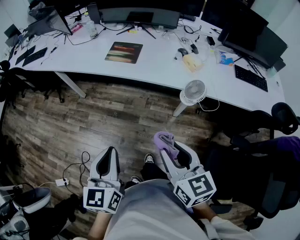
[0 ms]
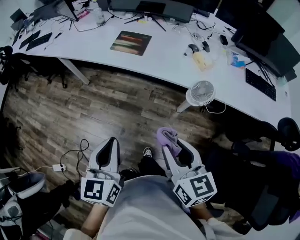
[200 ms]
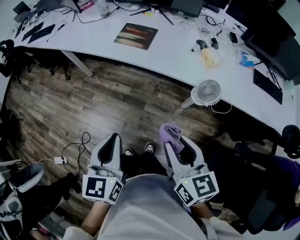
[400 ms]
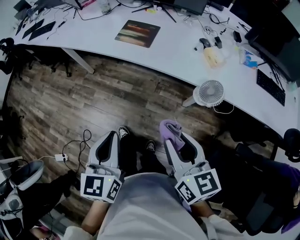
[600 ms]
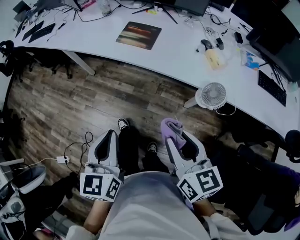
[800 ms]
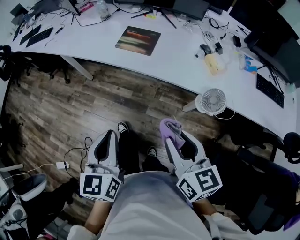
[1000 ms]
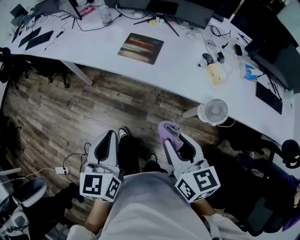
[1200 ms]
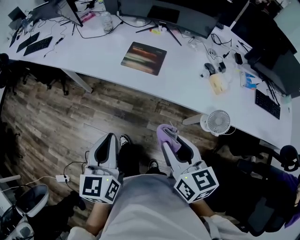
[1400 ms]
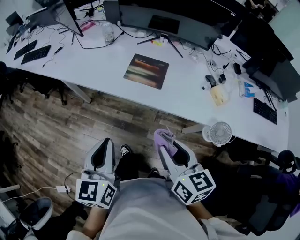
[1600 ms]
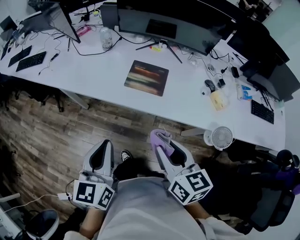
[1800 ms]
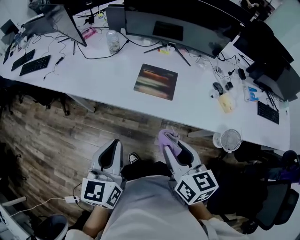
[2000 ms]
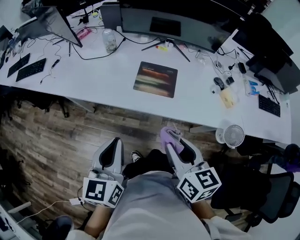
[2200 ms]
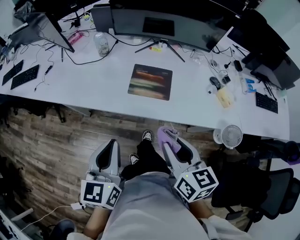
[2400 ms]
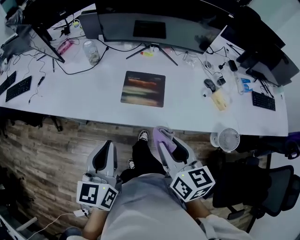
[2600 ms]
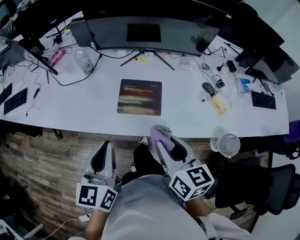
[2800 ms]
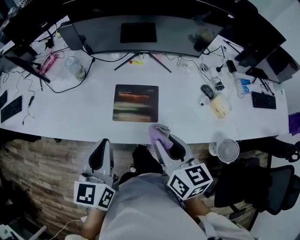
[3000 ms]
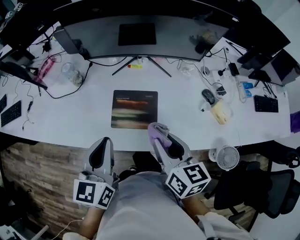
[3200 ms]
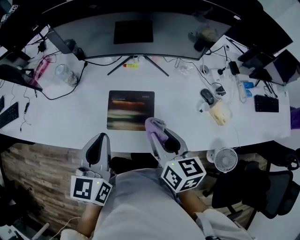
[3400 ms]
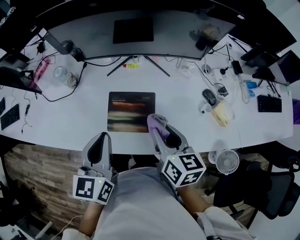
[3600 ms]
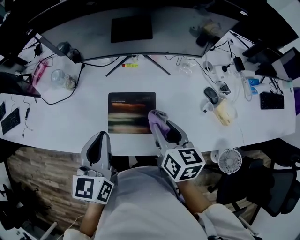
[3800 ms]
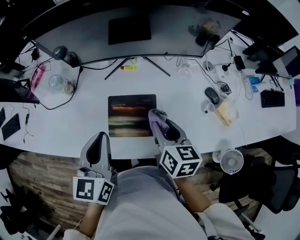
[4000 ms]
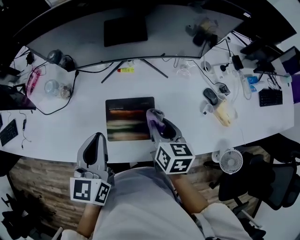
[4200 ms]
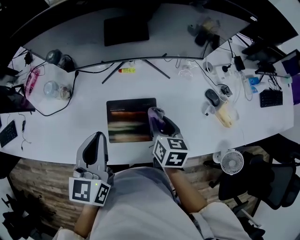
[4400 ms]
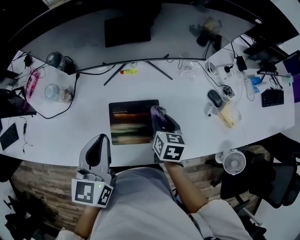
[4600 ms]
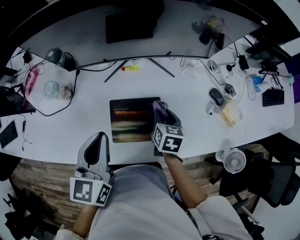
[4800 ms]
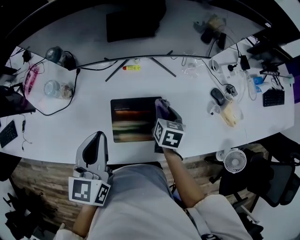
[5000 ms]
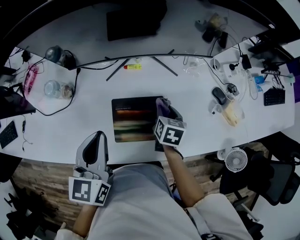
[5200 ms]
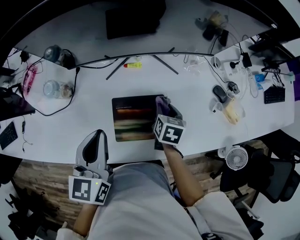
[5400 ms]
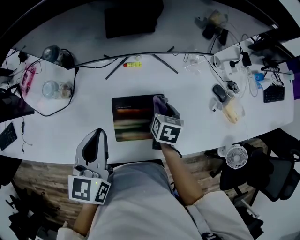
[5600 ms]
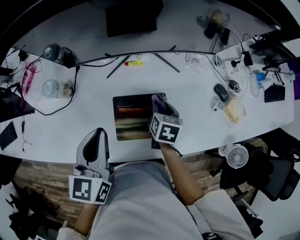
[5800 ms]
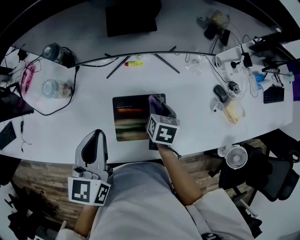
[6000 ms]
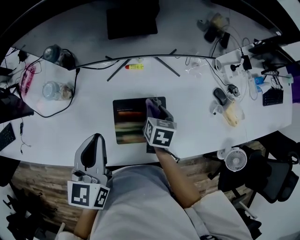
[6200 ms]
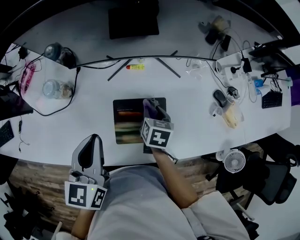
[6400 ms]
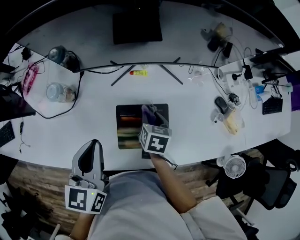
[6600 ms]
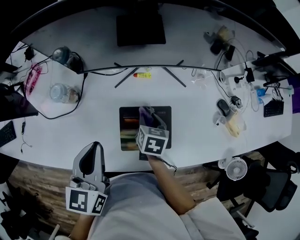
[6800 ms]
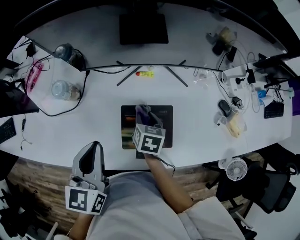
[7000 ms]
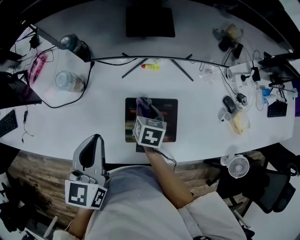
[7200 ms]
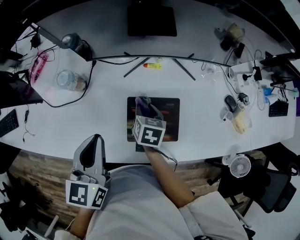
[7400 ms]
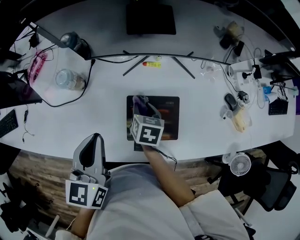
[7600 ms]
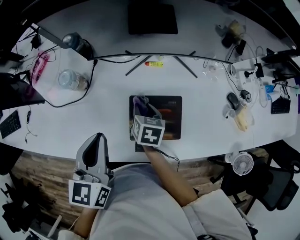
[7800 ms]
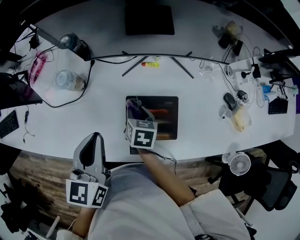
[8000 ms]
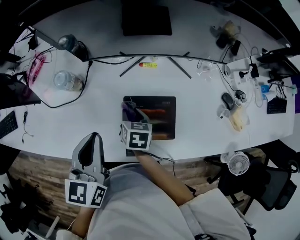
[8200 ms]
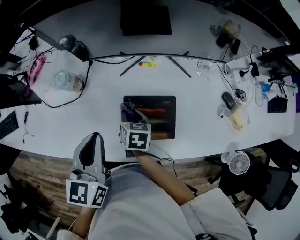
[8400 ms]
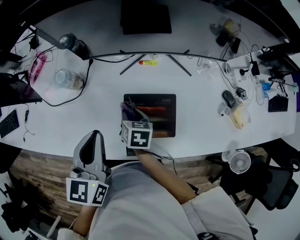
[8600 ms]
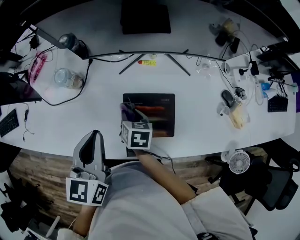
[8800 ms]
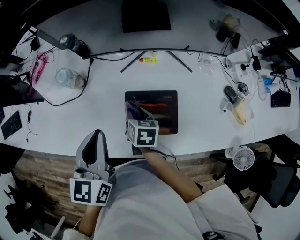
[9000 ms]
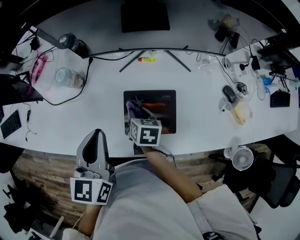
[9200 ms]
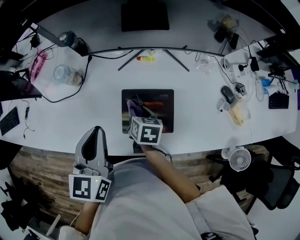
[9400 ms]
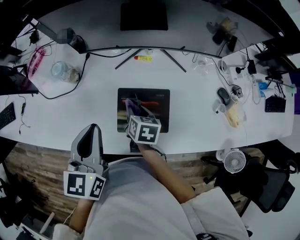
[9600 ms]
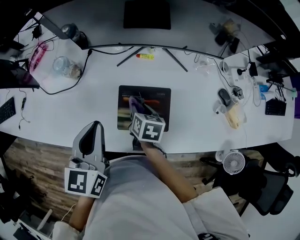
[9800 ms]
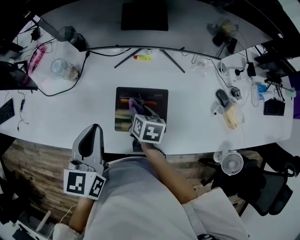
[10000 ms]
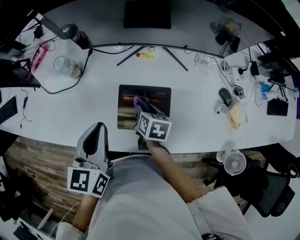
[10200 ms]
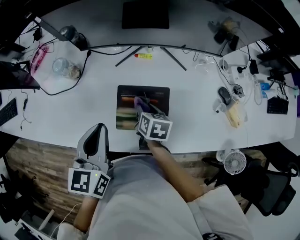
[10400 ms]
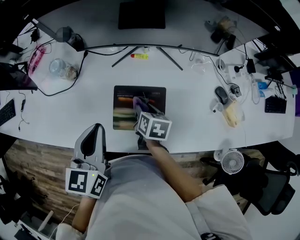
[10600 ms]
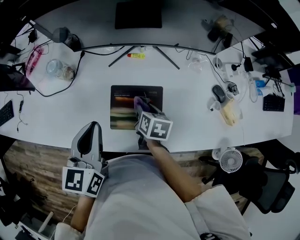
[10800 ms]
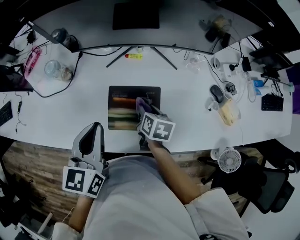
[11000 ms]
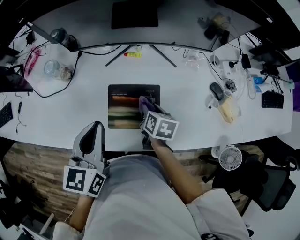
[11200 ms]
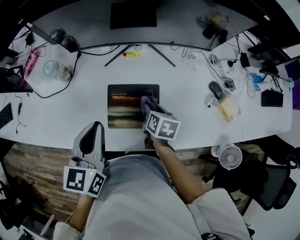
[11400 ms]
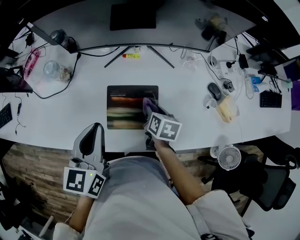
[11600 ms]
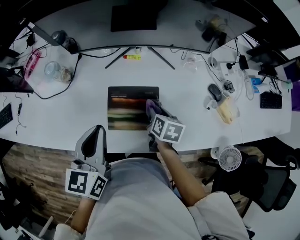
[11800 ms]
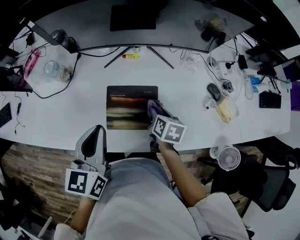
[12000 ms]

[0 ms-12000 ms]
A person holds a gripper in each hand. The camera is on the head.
0 ms to 1600 ms: The two grippers go approximately 30 cm forward.
1600 ms to 3000 ms: Both grippers travel together forward, roughly 25 cm.
3000 ms to 4400 ms: The left gripper travels forward by roughly 20 cm. The right gripper is displaced forward and downward by about 25 cm, and turns by some 20 degrees.
4400 ms to 6000 ms: The right gripper is displaced downward by roughly 10 cm, while the left gripper is displaced to the left by about 5 cm.
6000 ms to 7600 ms: The right gripper shifts roughly 15 cm to the left, while the left gripper moves to the left, some 5 cm.
7600 ms to 9000 ms: The grippers make only small movements.
9000 ms to 10400 ms: The left gripper shifts by approximately 5 cm, while the right gripper is displaced to the right by about 10 cm.
10400 ms to 12000 ms: The right gripper goes some 10 cm to the right.

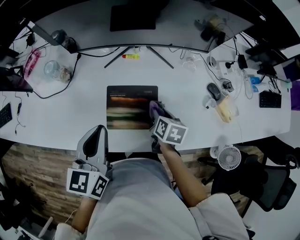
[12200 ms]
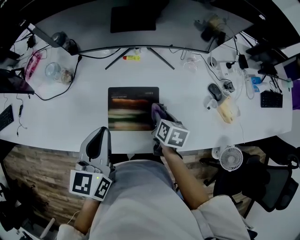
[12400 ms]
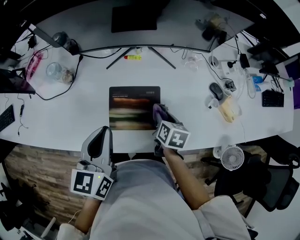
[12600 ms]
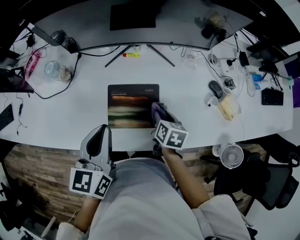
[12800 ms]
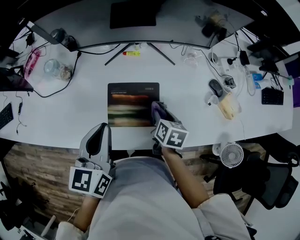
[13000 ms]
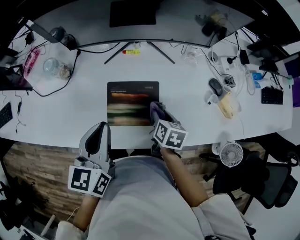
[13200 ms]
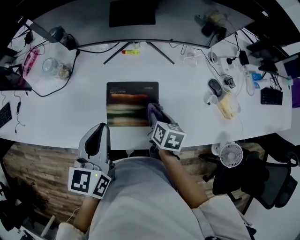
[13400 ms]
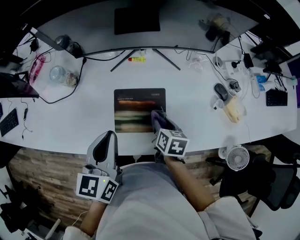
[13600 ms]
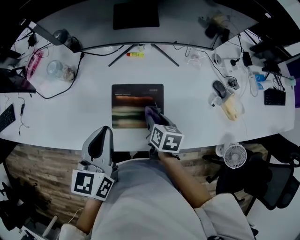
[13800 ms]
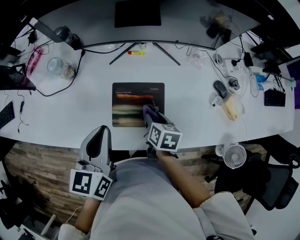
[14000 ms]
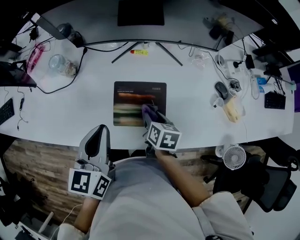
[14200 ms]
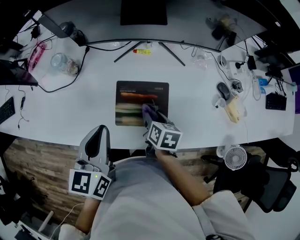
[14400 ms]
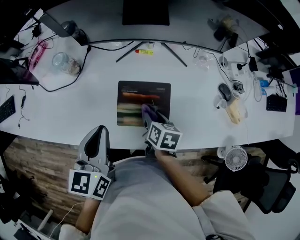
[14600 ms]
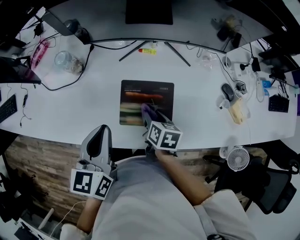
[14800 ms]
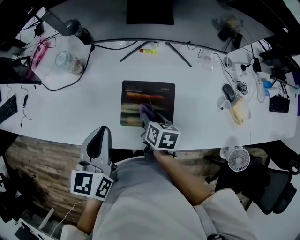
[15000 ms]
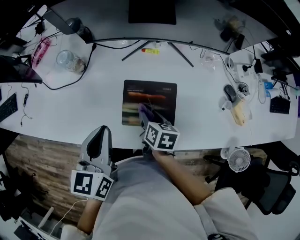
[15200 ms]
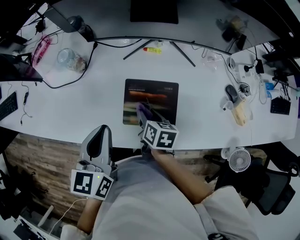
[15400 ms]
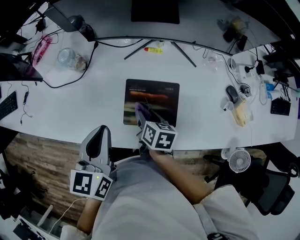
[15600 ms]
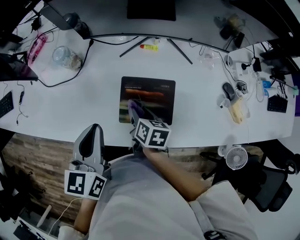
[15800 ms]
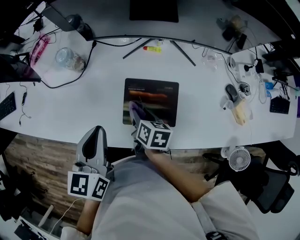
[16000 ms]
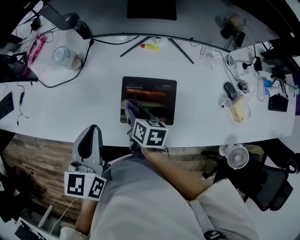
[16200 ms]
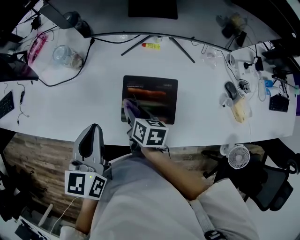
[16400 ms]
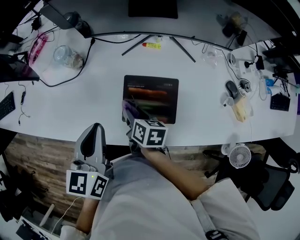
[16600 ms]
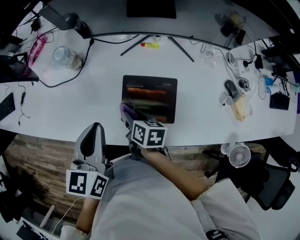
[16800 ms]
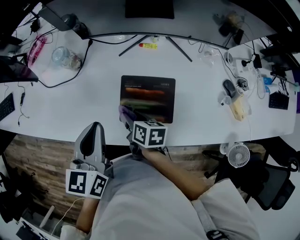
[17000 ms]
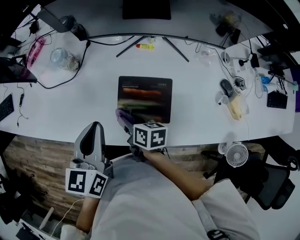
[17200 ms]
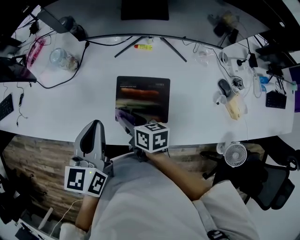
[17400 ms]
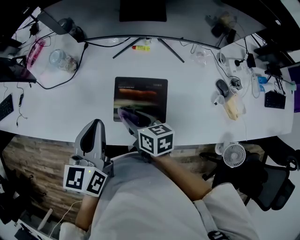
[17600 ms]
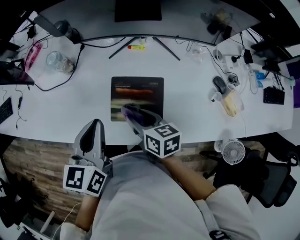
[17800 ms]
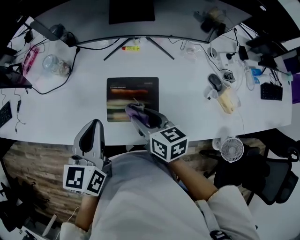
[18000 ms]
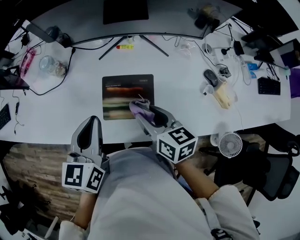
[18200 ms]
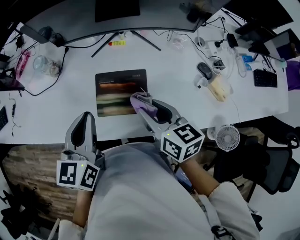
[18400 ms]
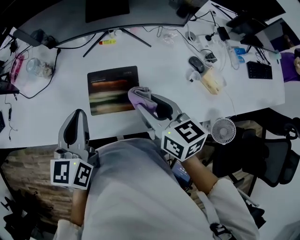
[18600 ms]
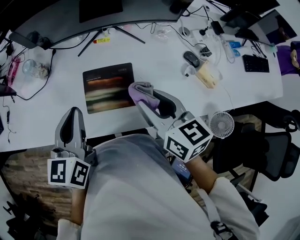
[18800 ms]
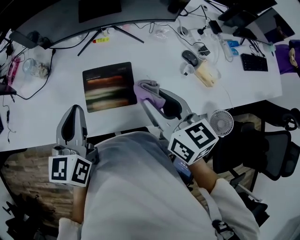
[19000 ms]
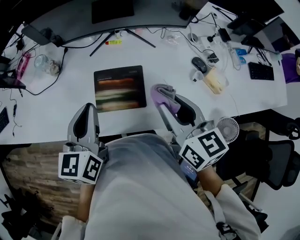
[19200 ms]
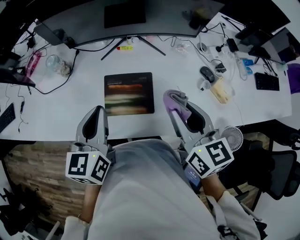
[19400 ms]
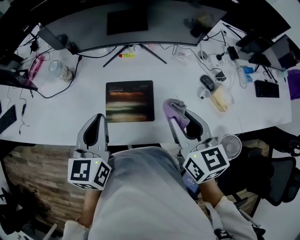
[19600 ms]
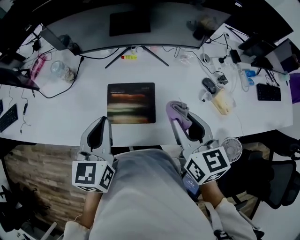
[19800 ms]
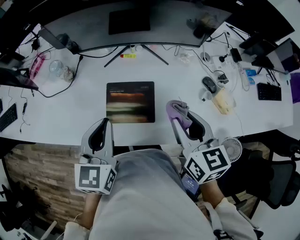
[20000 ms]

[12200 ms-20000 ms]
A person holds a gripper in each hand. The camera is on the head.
12200 ms to 13800 ms: The right gripper shifts by some 5 cm.
13800 ms to 15400 ms: The left gripper goes approximately 5 cm to the left. Meanwhile the right gripper heads to the left, covering roughly 10 cm.
15400 ms to 16800 ms: The right gripper travels to the left by roughly 5 cm.
16800 ms to 18400 ms: The left gripper heads to the right, covering roughly 10 cm, while the right gripper moves to the right, upward and backward, approximately 25 cm, and rotates approximately 30 degrees.
18400 ms to 20000 ms: The right gripper moves to the right and upward, approximately 10 cm.

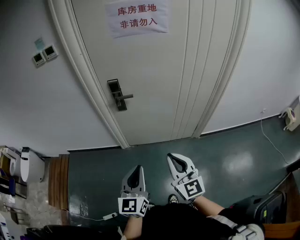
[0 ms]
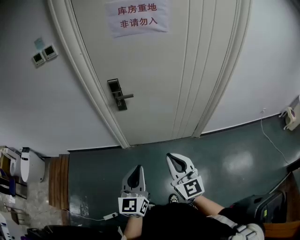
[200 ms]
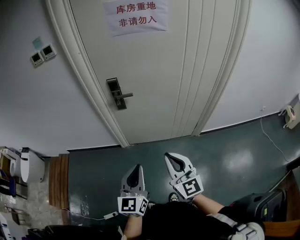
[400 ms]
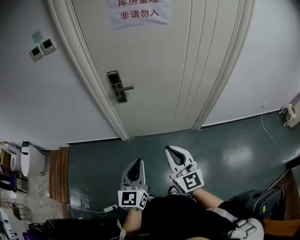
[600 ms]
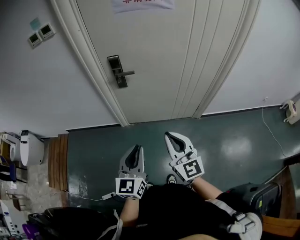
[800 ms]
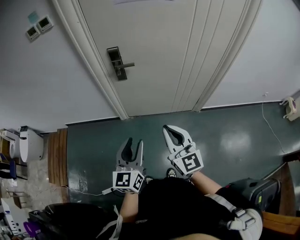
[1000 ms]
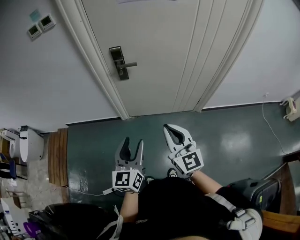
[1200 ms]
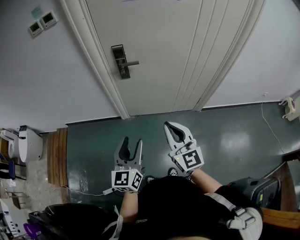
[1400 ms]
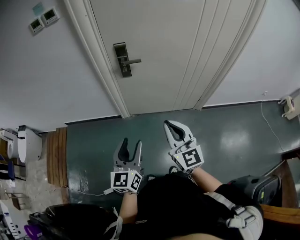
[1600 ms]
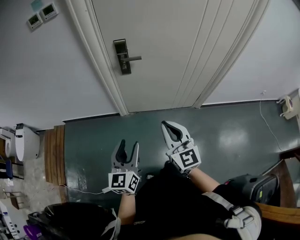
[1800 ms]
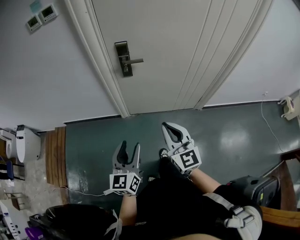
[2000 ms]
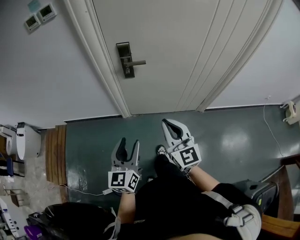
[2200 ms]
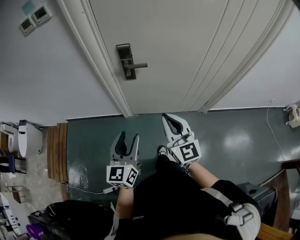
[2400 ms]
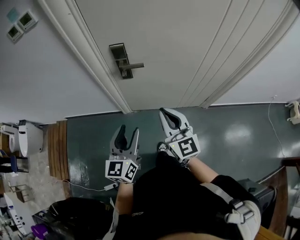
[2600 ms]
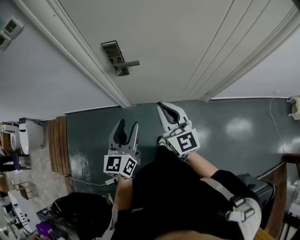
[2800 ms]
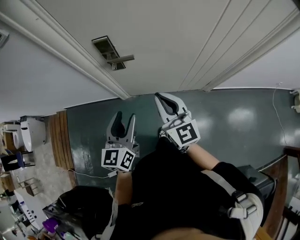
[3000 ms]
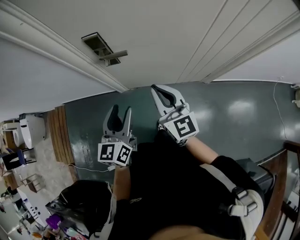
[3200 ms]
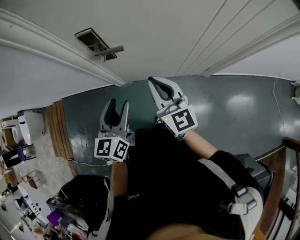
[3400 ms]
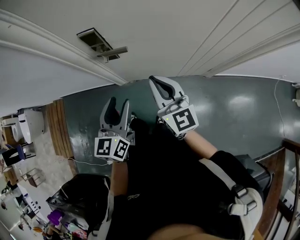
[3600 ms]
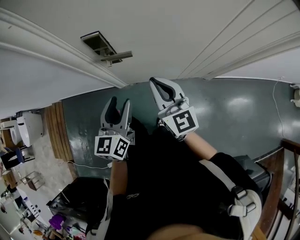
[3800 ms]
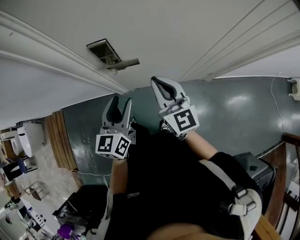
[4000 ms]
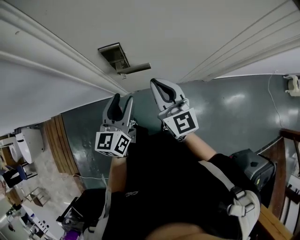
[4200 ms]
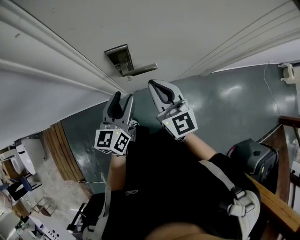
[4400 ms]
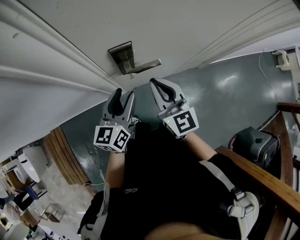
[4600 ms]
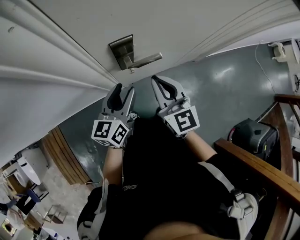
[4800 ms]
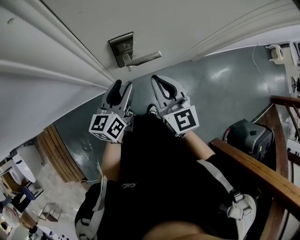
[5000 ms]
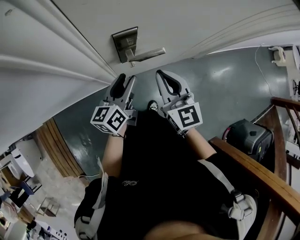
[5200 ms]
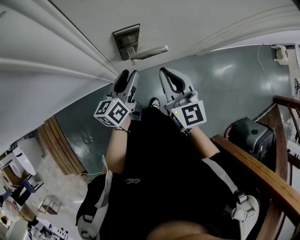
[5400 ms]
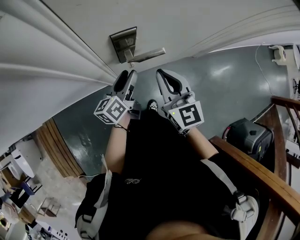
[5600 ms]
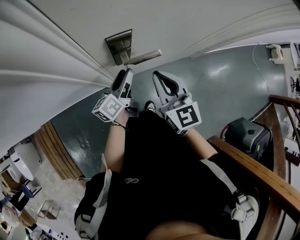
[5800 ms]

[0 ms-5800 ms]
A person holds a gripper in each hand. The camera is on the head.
0 ms to 1400 ms: The two grippers go about 5 cm to the left. The left gripper opens up.
1400 ms to 2800 ms: The grippers both shift forward by roughly 20 cm.
2800 ms to 4400 ms: The right gripper travels forward and to the left by approximately 20 cm. Meanwhile the left gripper goes some 25 cm forward.
4400 ms to 5800 ms: The left gripper goes roughly 15 cm downward and forward, and rotates about 40 degrees.
